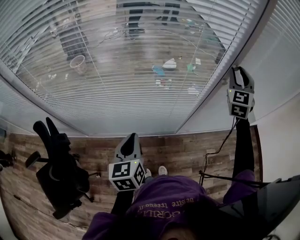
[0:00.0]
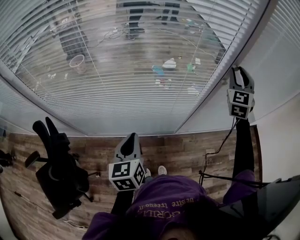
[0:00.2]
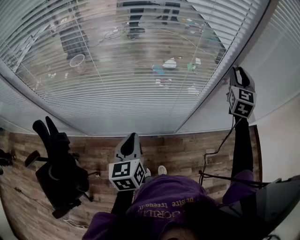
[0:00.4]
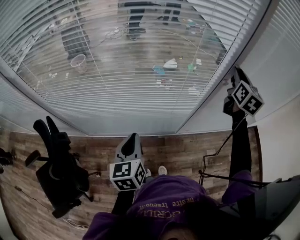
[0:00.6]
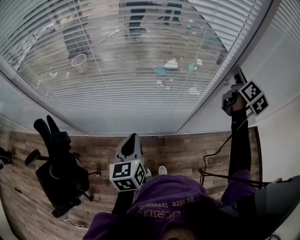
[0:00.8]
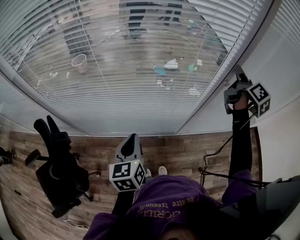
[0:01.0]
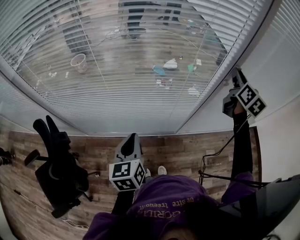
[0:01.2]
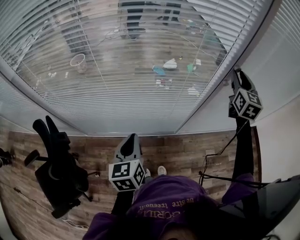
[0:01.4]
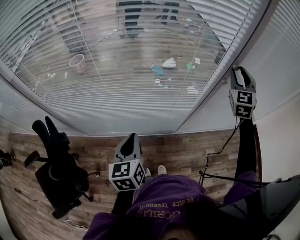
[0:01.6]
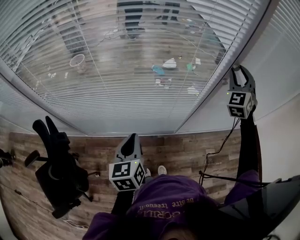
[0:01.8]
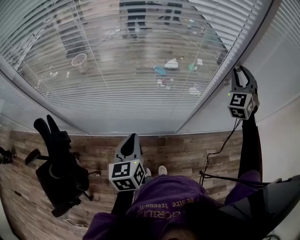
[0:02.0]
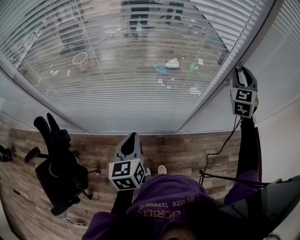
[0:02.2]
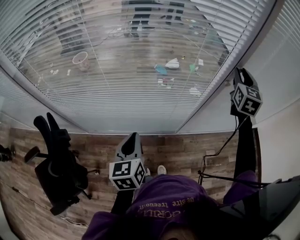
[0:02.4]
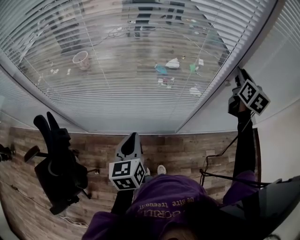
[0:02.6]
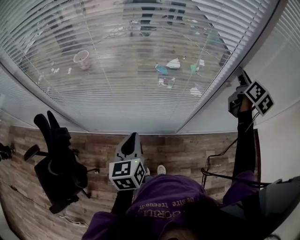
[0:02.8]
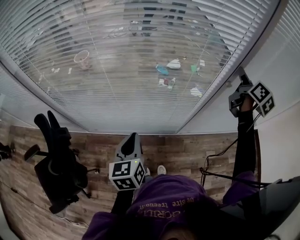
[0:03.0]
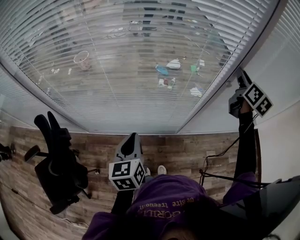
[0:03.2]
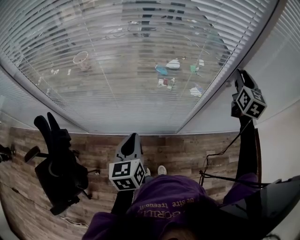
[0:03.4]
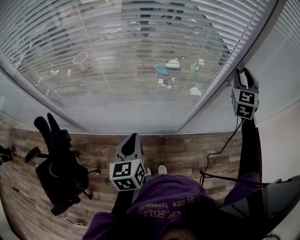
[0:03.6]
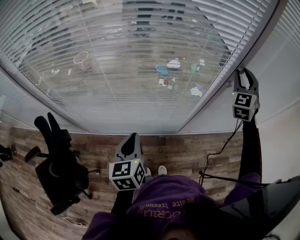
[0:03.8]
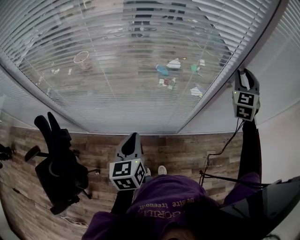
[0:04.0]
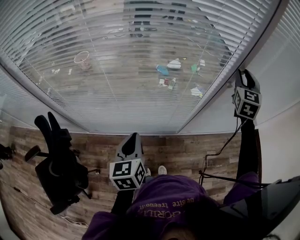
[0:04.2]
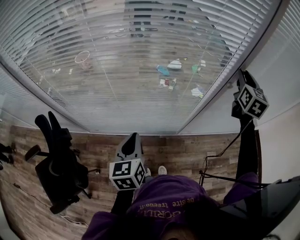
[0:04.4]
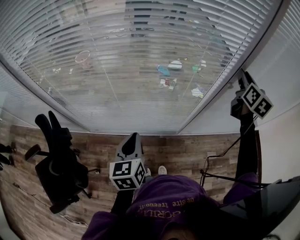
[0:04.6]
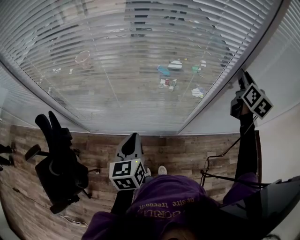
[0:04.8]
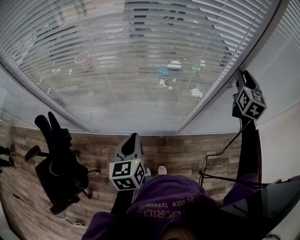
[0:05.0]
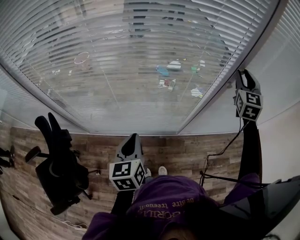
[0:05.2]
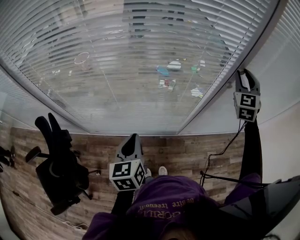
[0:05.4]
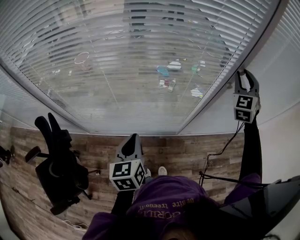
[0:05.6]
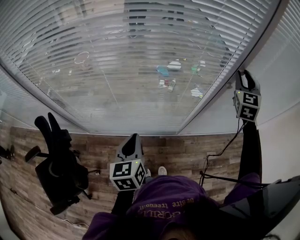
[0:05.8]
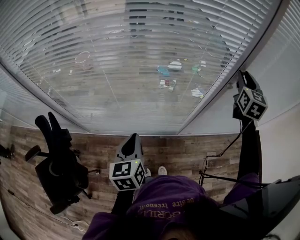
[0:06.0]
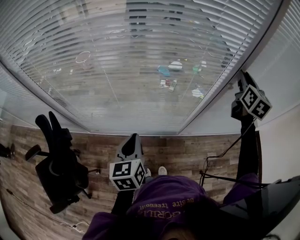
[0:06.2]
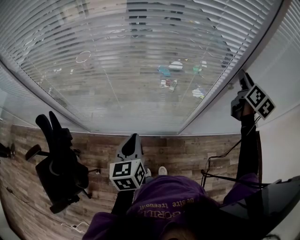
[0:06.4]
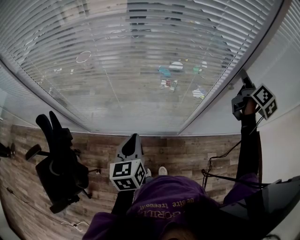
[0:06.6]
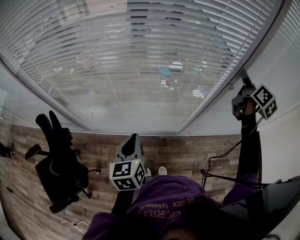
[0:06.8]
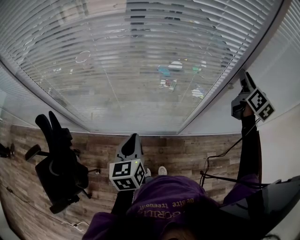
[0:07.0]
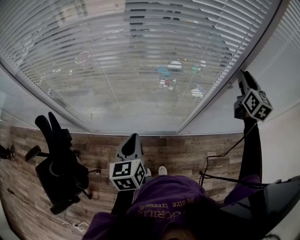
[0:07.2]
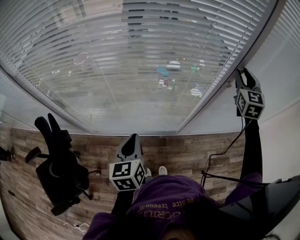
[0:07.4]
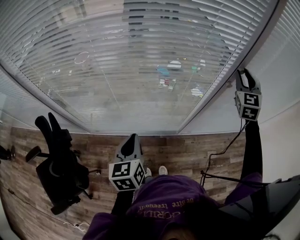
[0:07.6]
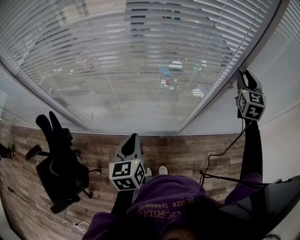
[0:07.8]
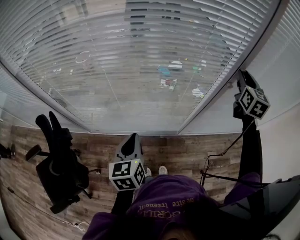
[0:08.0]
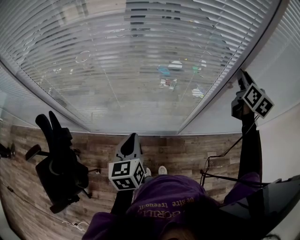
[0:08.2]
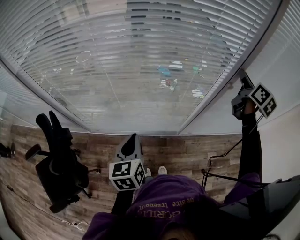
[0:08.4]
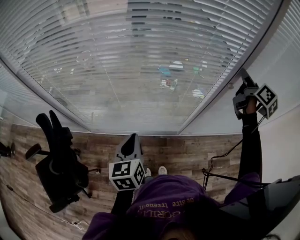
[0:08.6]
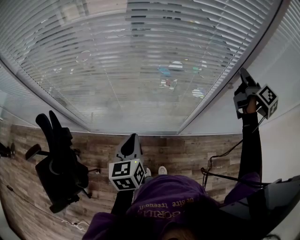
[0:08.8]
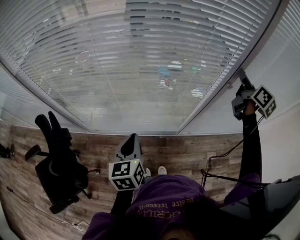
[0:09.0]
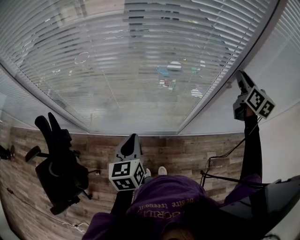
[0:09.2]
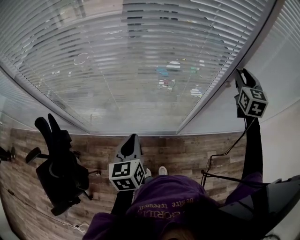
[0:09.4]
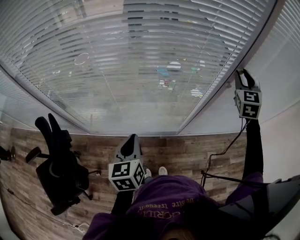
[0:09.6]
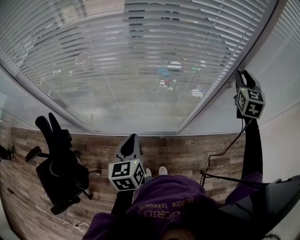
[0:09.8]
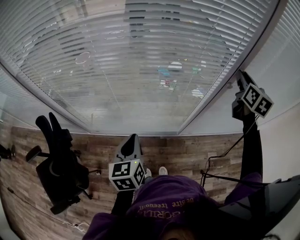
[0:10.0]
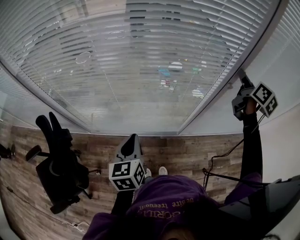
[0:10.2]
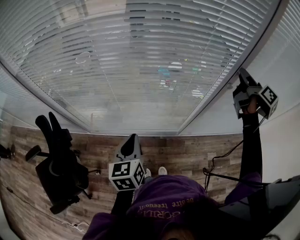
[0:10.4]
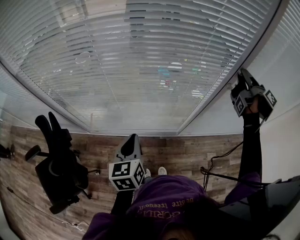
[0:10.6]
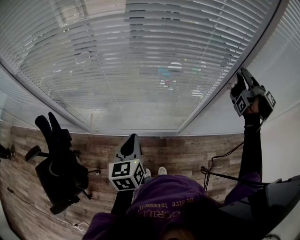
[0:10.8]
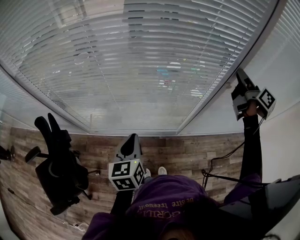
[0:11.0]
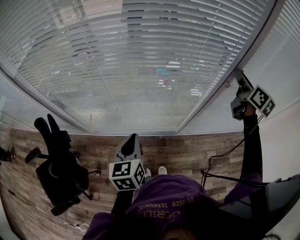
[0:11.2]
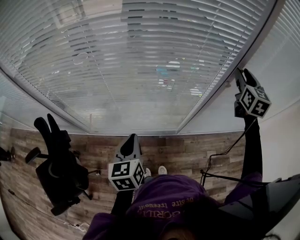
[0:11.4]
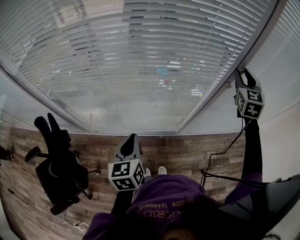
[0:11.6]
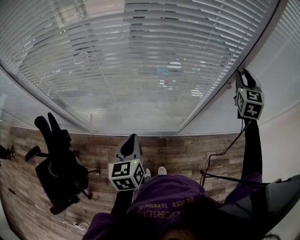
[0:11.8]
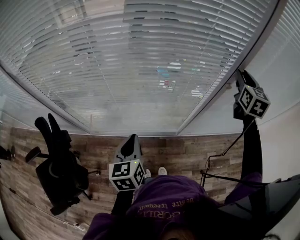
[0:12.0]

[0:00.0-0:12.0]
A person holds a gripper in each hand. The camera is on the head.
0:01.6 to 0:03.0: The right gripper twists some 70 degrees clockwise, seen from behind.
0:03.0 to 0:04.4: The right gripper turns by approximately 40 degrees.
0:06.0 to 0:07.6: The right gripper turns by approximately 20 degrees.
0:07.6 to 0:09.0: The right gripper twists roughly 70 degrees clockwise, seen from behind.
0:09.0 to 0:10.4: The right gripper rotates roughly 20 degrees.
0:10.4 to 0:12.0: The right gripper rolls counterclockwise, seen from behind, by approximately 70 degrees.

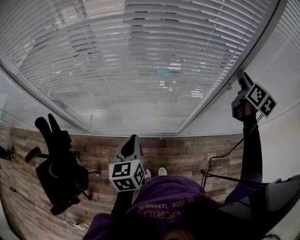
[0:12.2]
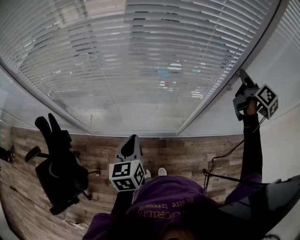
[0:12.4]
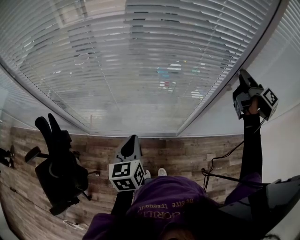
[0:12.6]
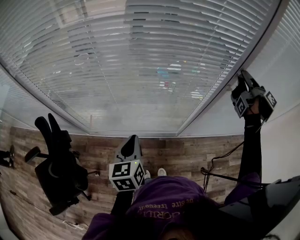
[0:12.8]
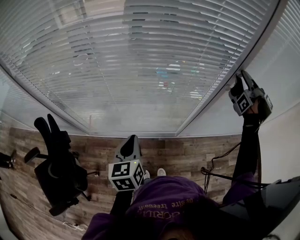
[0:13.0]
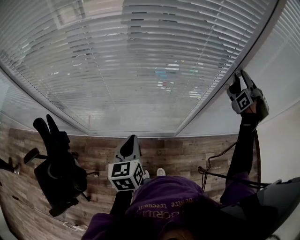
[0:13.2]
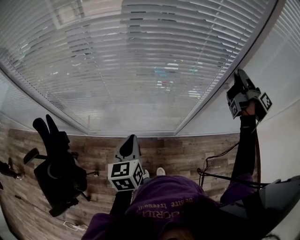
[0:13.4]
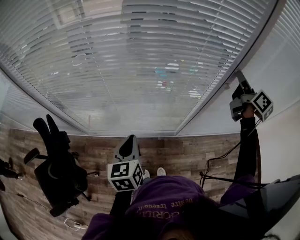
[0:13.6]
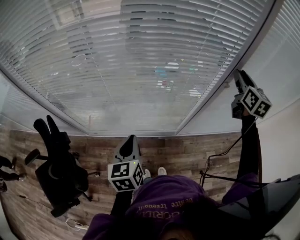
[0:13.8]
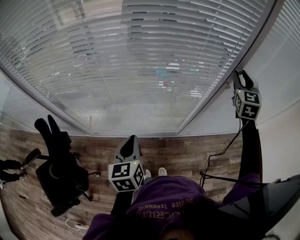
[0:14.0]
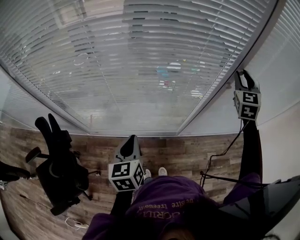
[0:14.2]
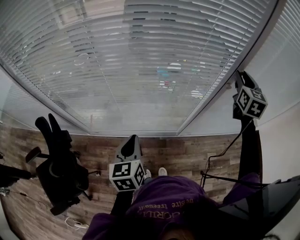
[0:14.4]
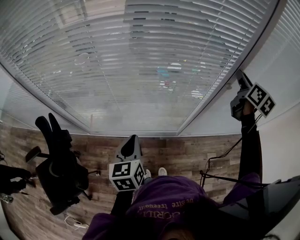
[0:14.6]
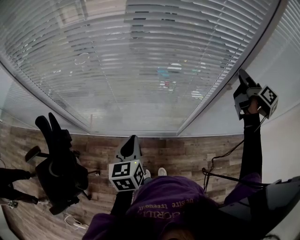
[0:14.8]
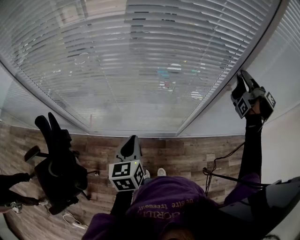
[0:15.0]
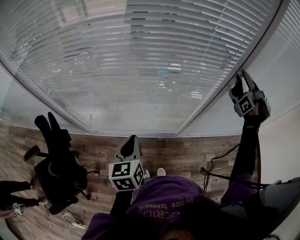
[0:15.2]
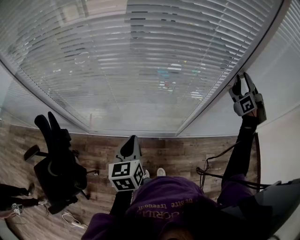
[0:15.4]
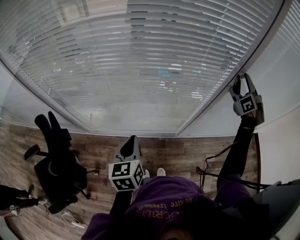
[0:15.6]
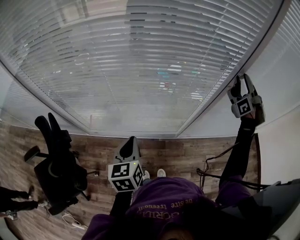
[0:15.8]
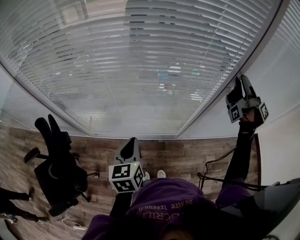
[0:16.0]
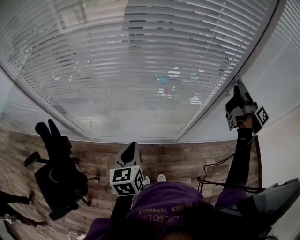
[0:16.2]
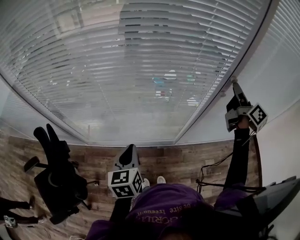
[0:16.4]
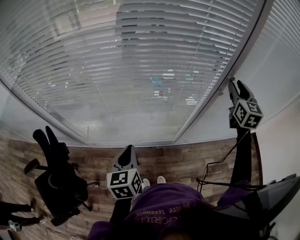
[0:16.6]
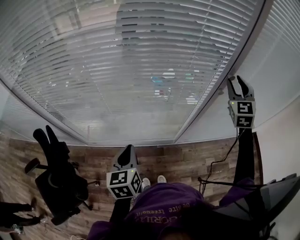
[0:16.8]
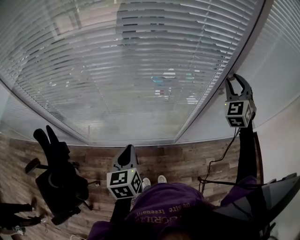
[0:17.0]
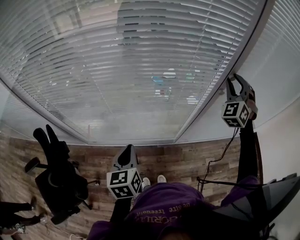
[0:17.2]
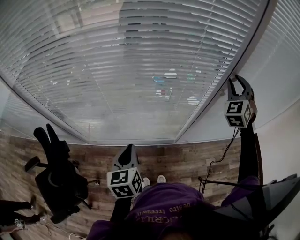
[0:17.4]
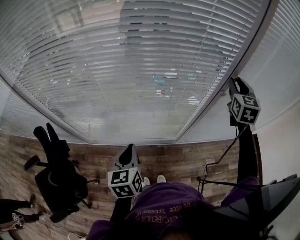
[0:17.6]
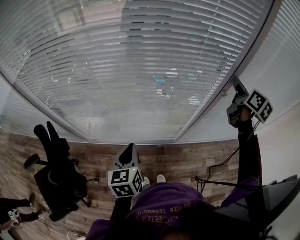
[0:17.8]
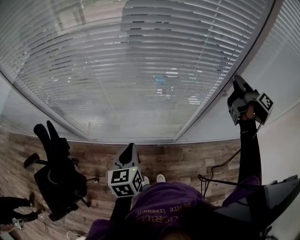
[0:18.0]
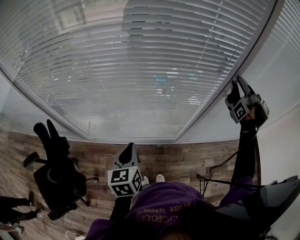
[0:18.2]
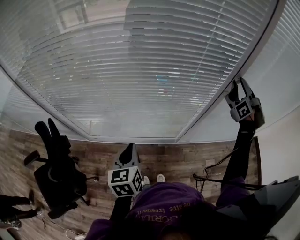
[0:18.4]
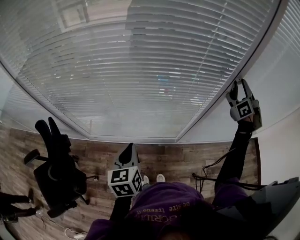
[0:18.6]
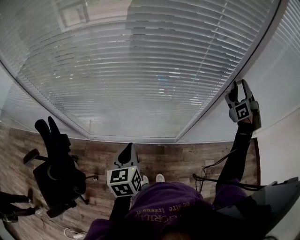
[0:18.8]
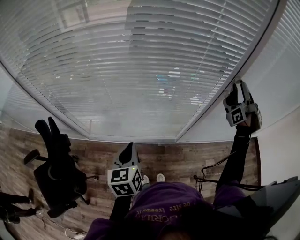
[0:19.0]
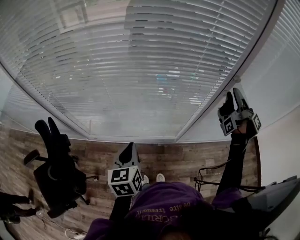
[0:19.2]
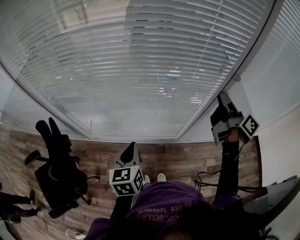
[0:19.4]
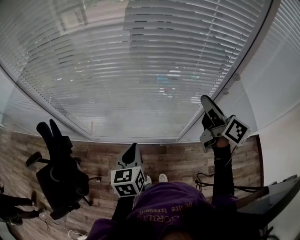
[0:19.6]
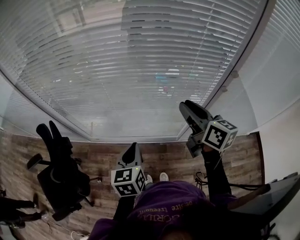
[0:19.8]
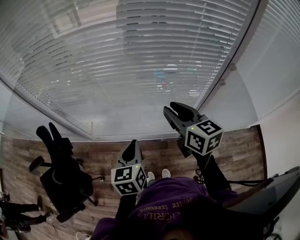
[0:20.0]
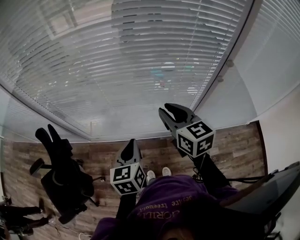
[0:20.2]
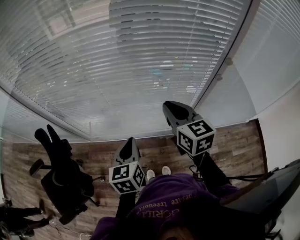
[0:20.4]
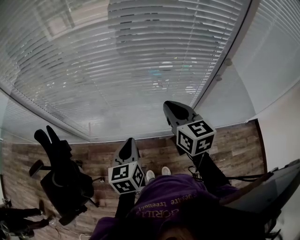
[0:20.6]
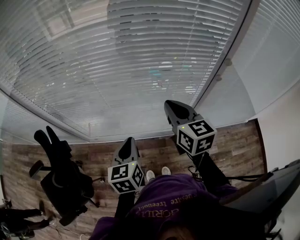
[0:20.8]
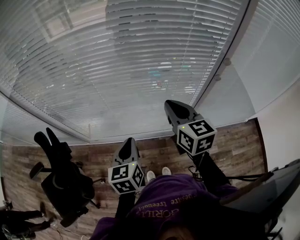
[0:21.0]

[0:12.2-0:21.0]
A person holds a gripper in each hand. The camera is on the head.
0:12.2 to 0:13.6: The right gripper rotates roughly 30 degrees.
0:13.6 to 0:15.2: The right gripper rotates around the line of its fingers by some 60 degrees, clockwise from behind.
0:15.2 to 0:16.6: The right gripper rotates around the line of its fingers by about 110 degrees, counterclockwise from behind.
0:16.6 to 0:18.0: The right gripper rotates around the line of its fingers by about 80 degrees, clockwise from behind.
0:18.0 to 0:19.6: The right gripper is displaced to the left and backward by some 20 cm, and rotates roughly 40 degrees.
0:19.6 to 0:21.0: The right gripper travels to the left and downward by roughly 10 cm, turns by roughly 40 degrees, and closes its fingers.

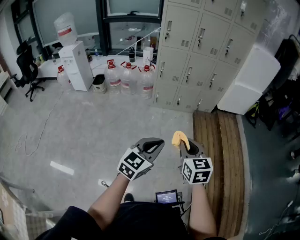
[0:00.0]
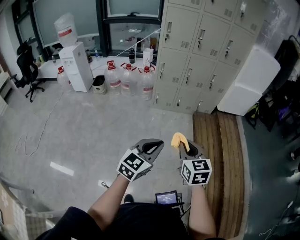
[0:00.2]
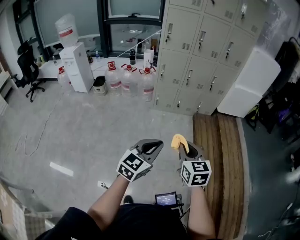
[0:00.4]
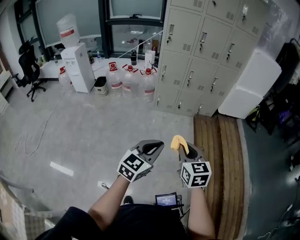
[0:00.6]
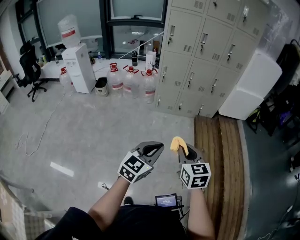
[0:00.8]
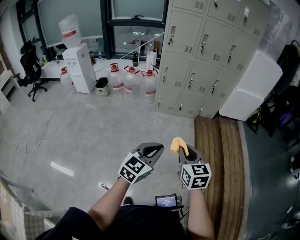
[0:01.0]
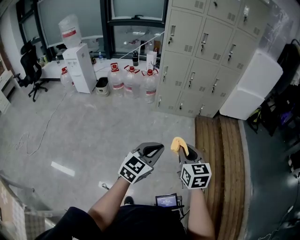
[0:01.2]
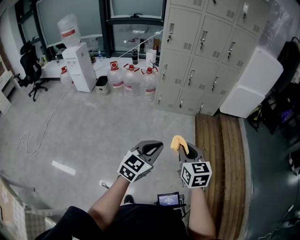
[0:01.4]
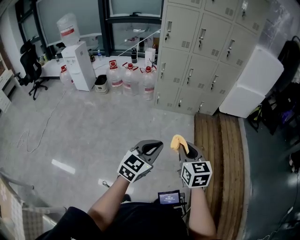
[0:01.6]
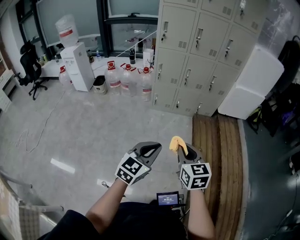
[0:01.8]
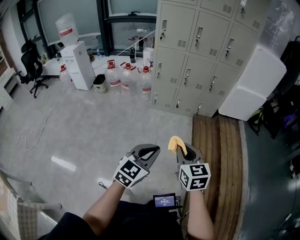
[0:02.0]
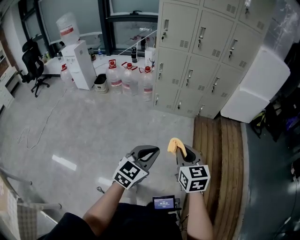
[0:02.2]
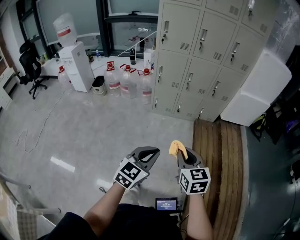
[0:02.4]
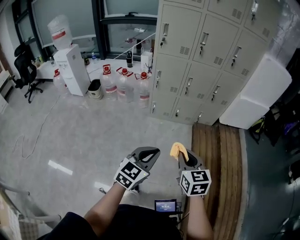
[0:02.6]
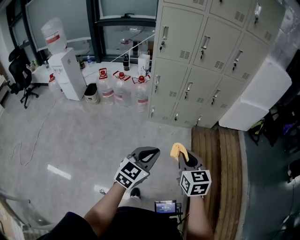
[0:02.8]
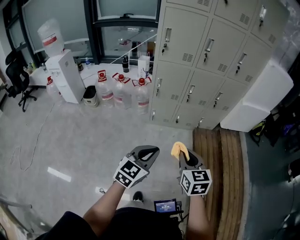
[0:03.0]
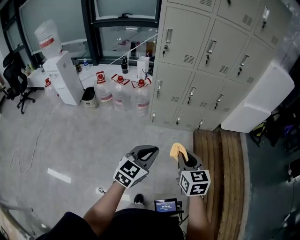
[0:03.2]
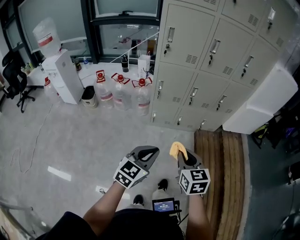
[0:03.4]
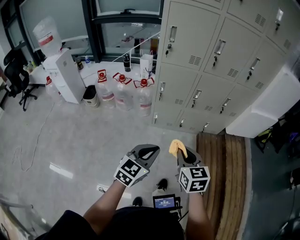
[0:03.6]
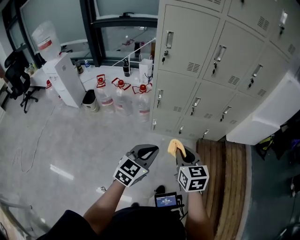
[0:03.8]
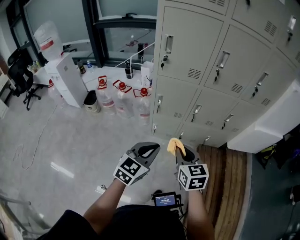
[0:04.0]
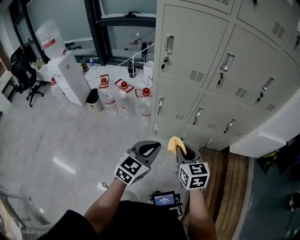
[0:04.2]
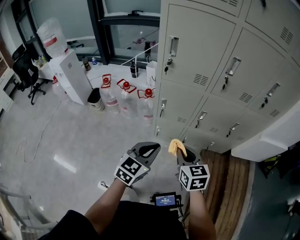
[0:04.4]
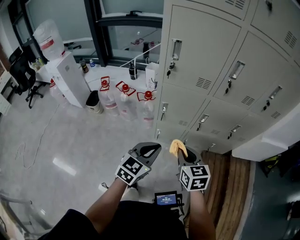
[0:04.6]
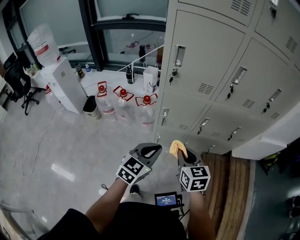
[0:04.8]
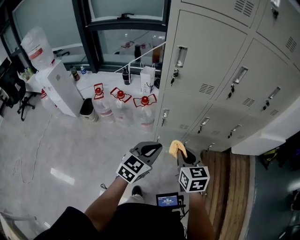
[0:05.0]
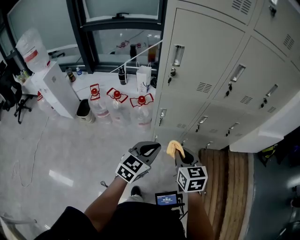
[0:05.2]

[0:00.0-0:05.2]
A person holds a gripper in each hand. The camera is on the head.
0:00.0 to 0:01.8: Both grippers move to the right, some 5 cm.
0:01.8 to 0:03.4: The two grippers go roughly 35 cm forward and to the left.
0:03.4 to 0:05.2: The grippers both shift forward by approximately 35 cm.
